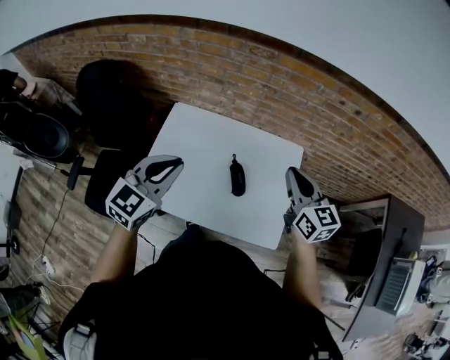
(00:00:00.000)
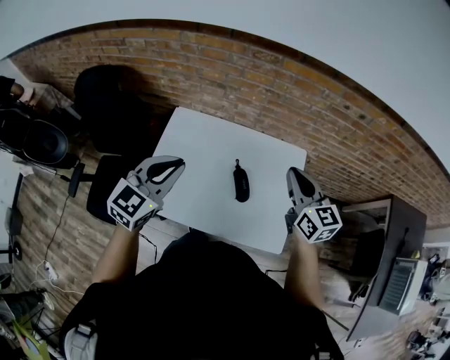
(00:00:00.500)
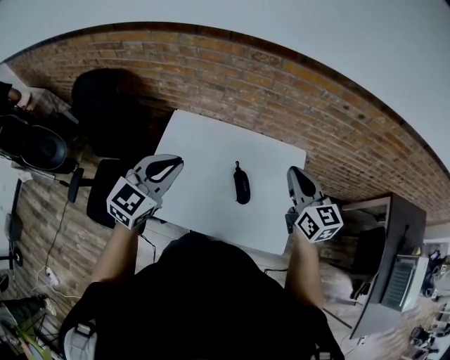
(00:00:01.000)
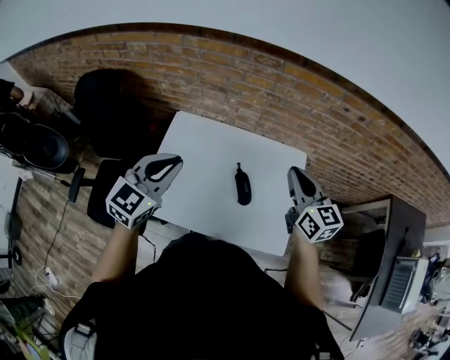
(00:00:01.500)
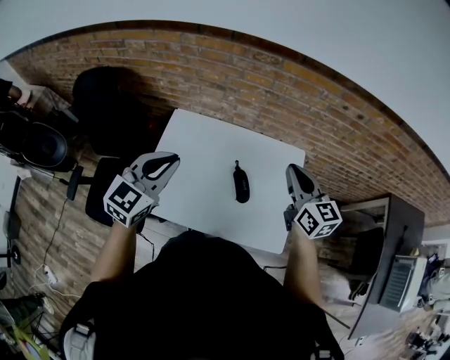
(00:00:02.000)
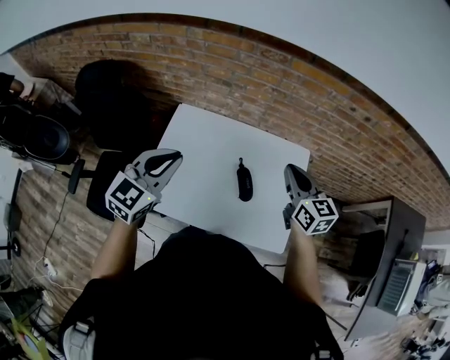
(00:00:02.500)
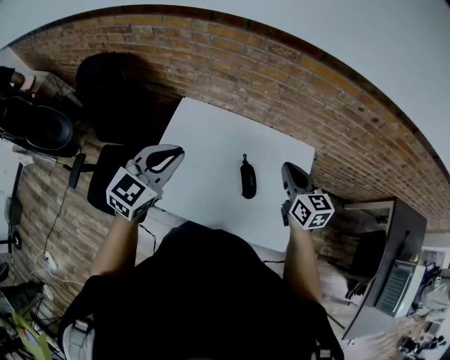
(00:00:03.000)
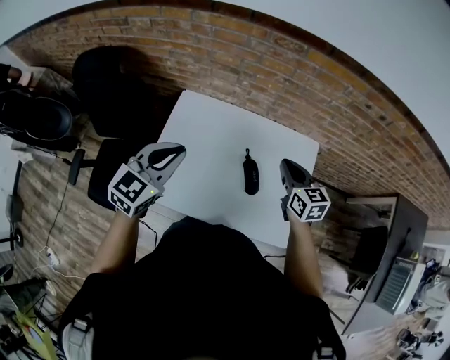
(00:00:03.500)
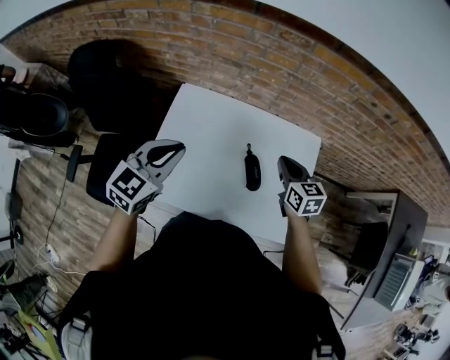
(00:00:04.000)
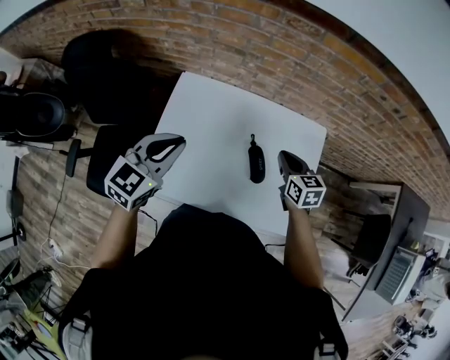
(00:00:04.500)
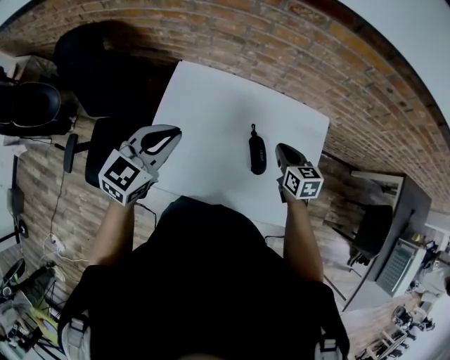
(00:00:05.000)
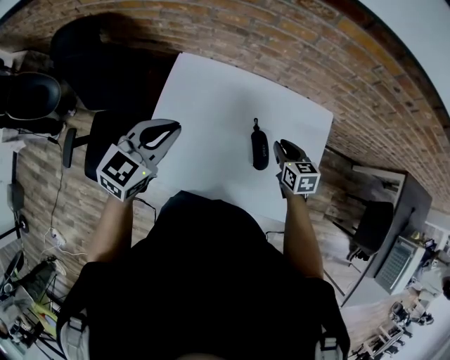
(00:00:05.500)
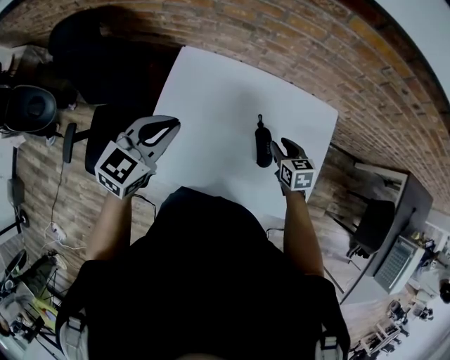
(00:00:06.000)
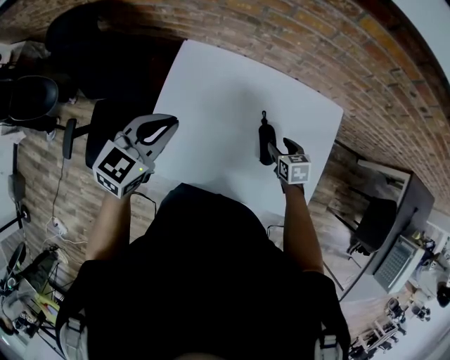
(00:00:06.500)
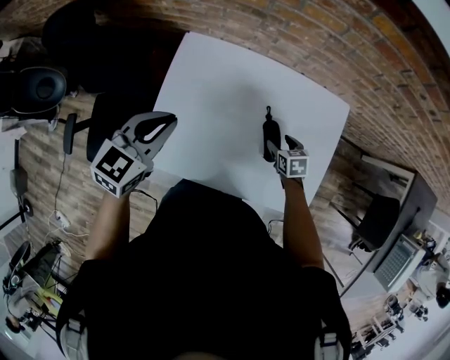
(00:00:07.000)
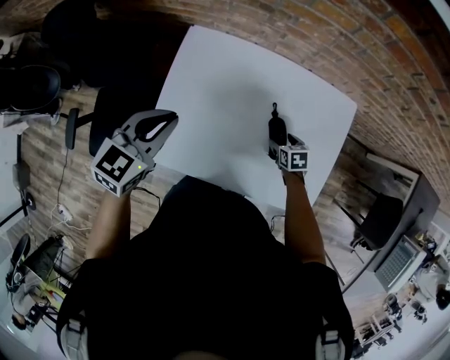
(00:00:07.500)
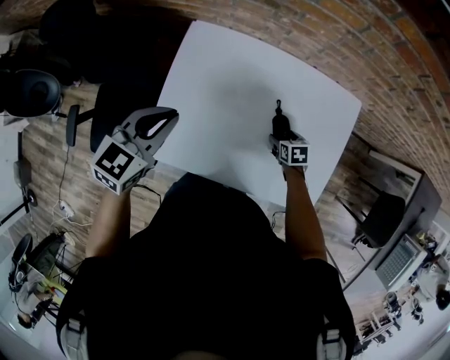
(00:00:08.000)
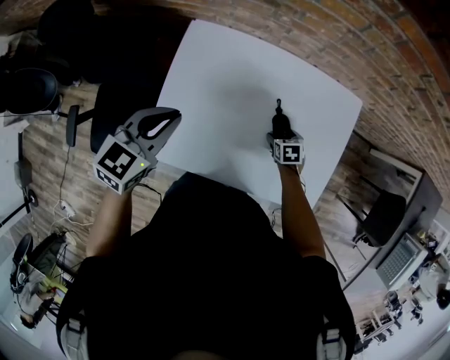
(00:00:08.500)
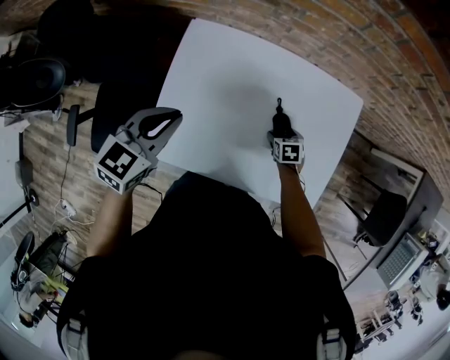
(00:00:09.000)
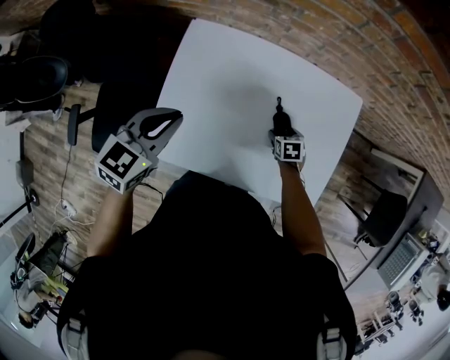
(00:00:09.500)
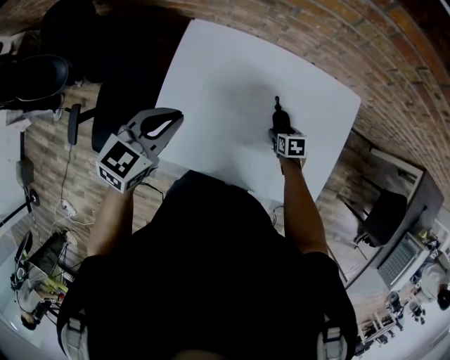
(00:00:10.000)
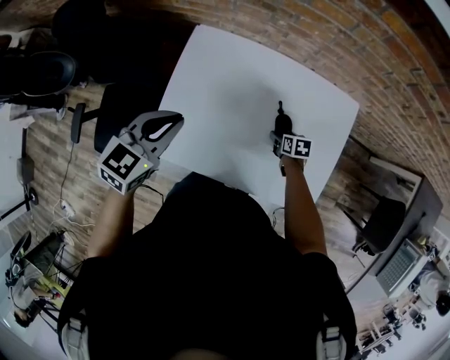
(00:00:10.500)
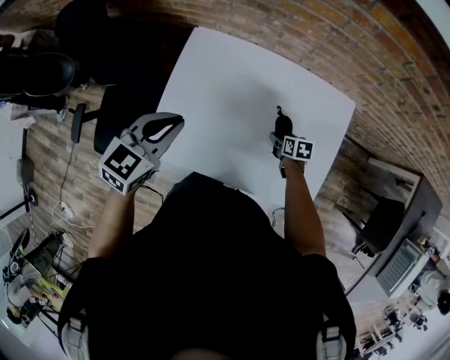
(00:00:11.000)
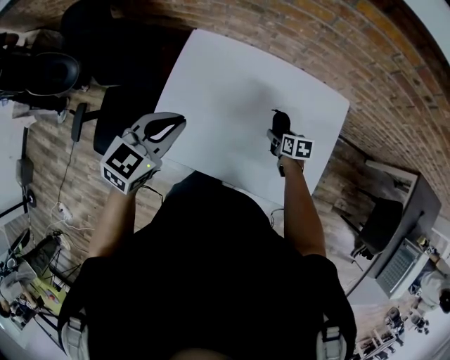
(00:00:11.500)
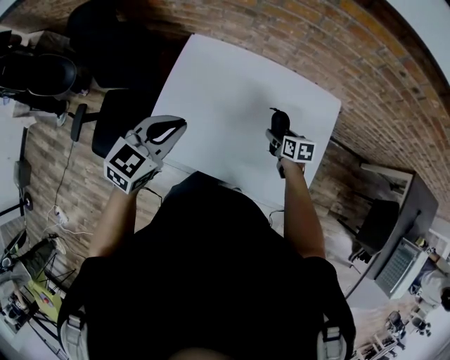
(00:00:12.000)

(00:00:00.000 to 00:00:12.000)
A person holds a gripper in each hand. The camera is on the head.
00:00:00.000 - 00:00:02.000: The left gripper moves approximately 5 cm.
00:00:02.000 - 00:00:04.000: The right gripper travels downward by approximately 15 cm; the left gripper travels downward by approximately 5 cm.
00:00:04.000 - 00:00:06.000: The right gripper moves downward, about 15 cm, and opens up, while the left gripper goes about 5 cm downward.
00:00:06.000 - 00:00:08.000: The right gripper heads downward, covering approximately 15 cm, swivels roughly 20 degrees, and opens; the left gripper is displaced downward by about 5 cm.
00:00:08.000 - 00:00:10.000: The grippers stay close to where they were, moving slightly.
00:00:10.000 - 00:00:12.000: The left gripper heads backward and upward, covering approximately 10 cm. The right gripper goes roughly 10 cm upward.

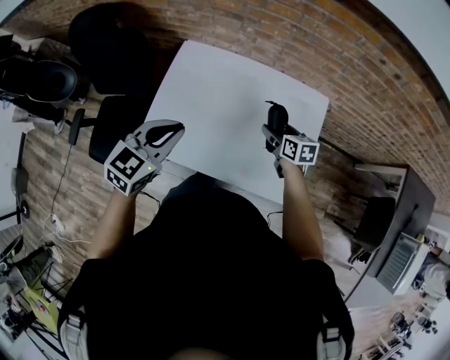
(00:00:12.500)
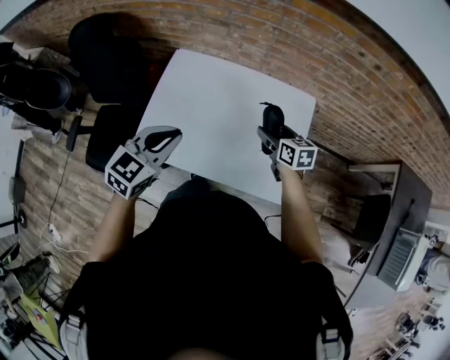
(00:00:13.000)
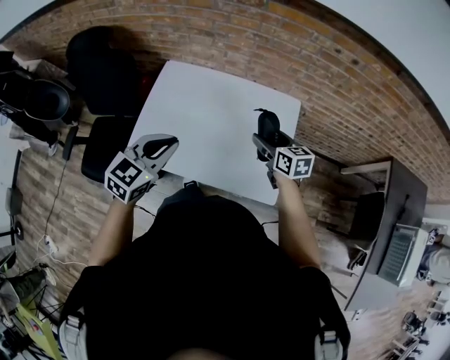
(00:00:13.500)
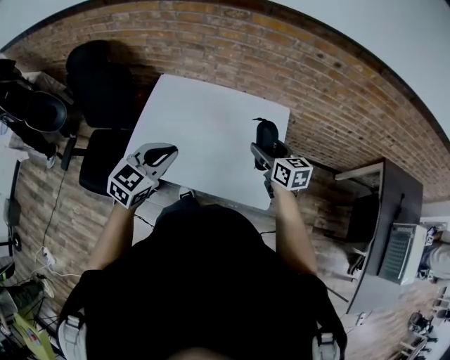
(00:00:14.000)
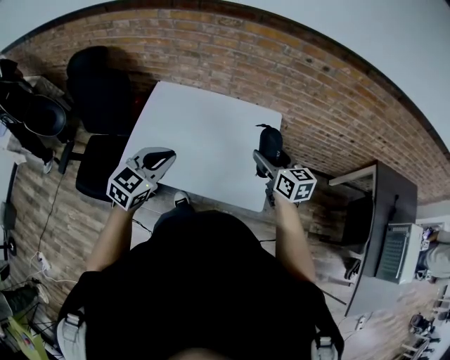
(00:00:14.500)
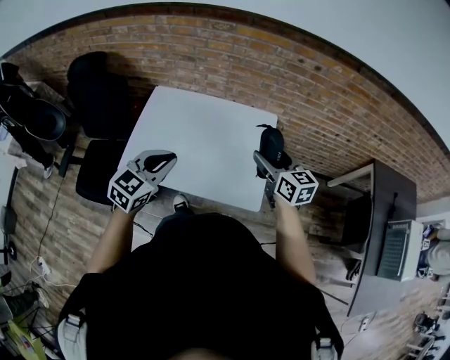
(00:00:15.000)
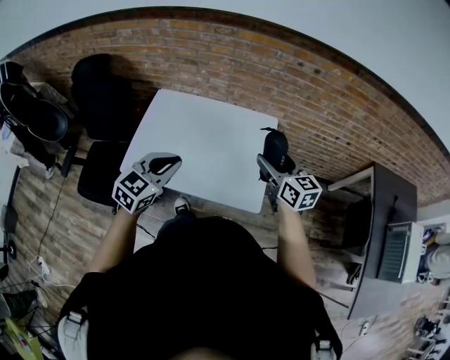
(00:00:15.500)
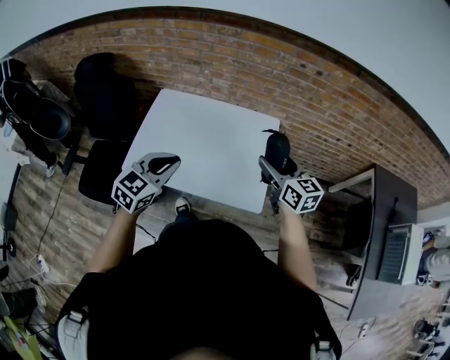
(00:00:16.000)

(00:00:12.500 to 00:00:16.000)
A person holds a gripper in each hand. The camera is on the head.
00:00:12.500 - 00:00:14.500: The left gripper travels backward and to the right by approximately 15 cm; the right gripper heads upward, backward and to the right, covering approximately 25 cm, and turns by about 20 degrees.
00:00:14.500 - 00:00:16.000: The right gripper shifts some 5 cm upward and backward.

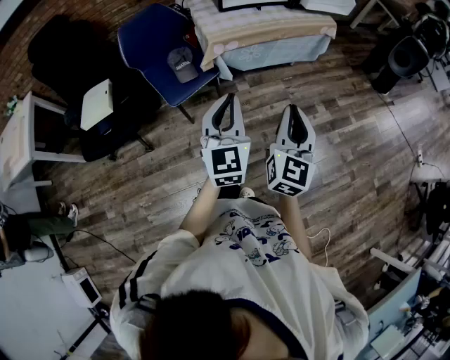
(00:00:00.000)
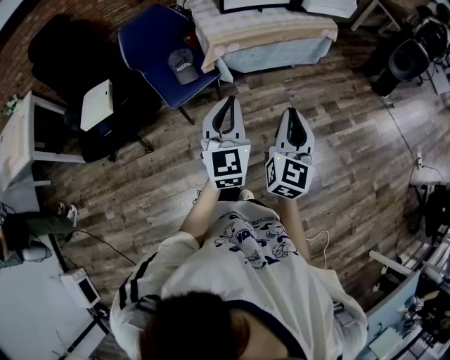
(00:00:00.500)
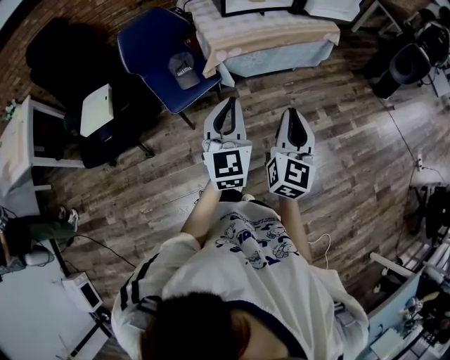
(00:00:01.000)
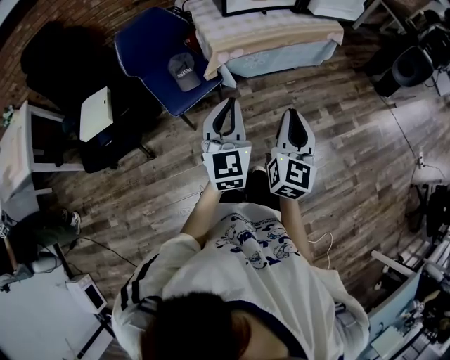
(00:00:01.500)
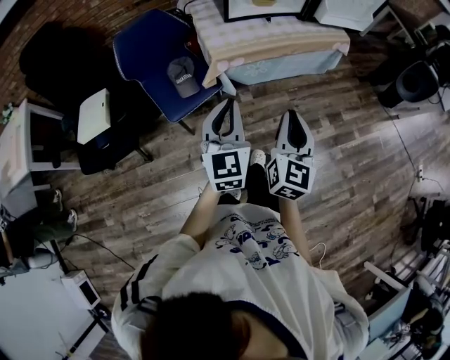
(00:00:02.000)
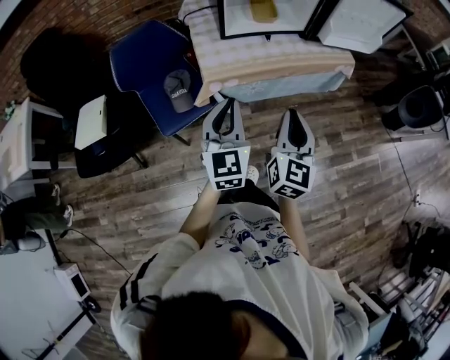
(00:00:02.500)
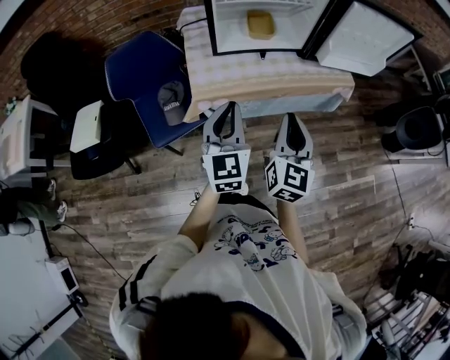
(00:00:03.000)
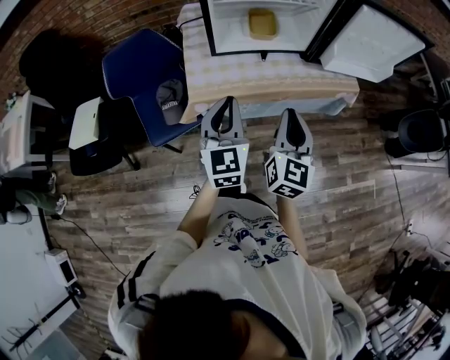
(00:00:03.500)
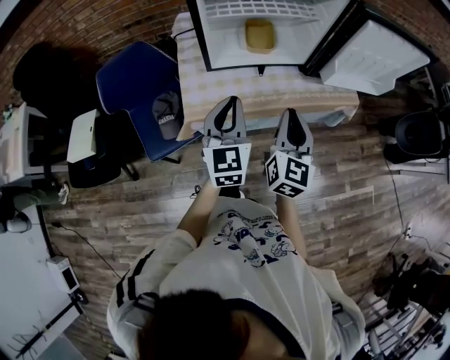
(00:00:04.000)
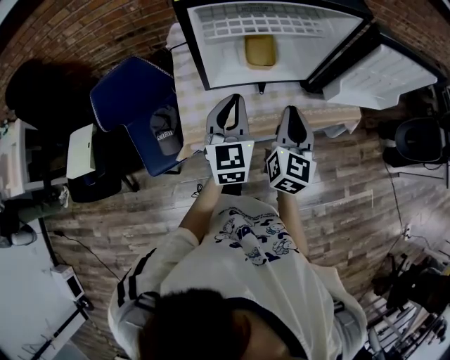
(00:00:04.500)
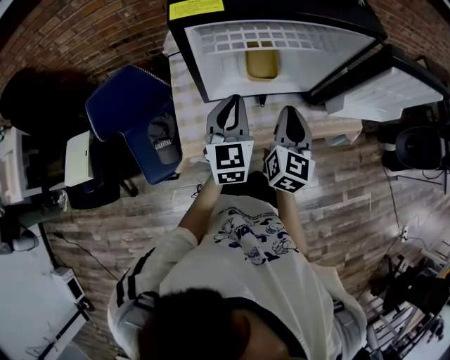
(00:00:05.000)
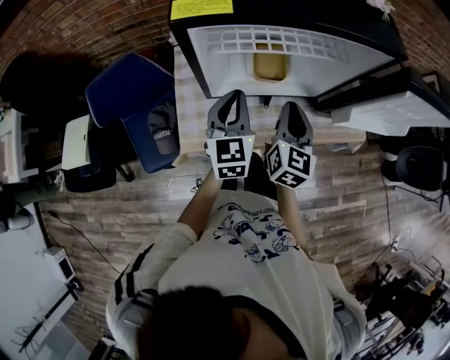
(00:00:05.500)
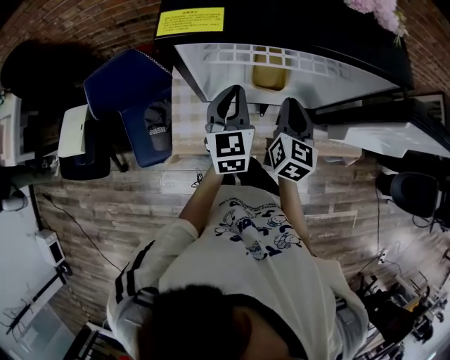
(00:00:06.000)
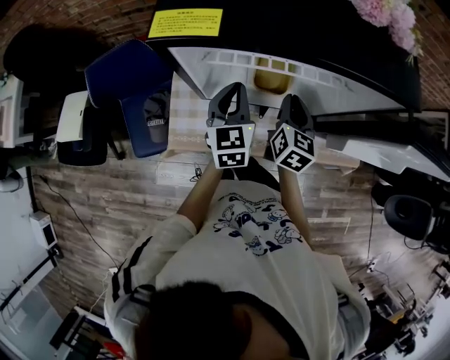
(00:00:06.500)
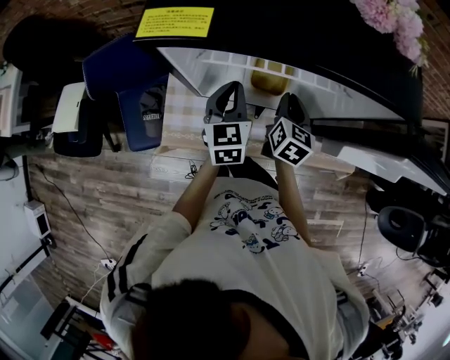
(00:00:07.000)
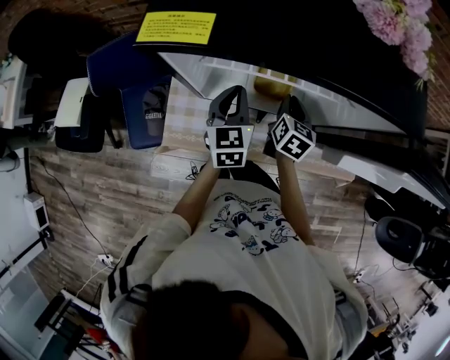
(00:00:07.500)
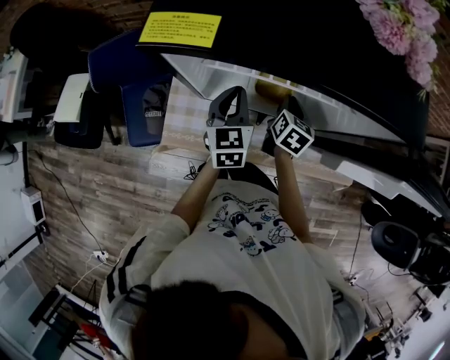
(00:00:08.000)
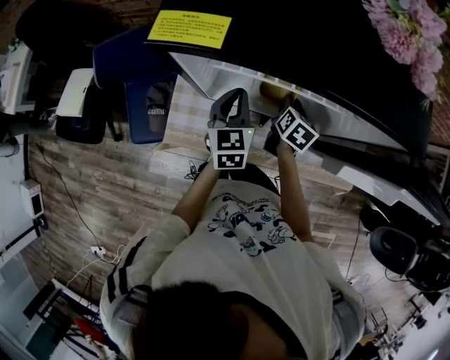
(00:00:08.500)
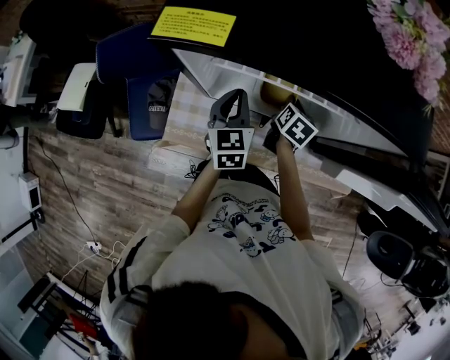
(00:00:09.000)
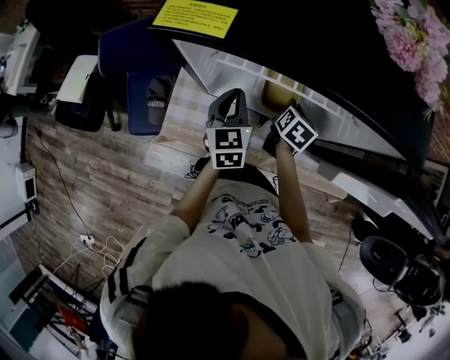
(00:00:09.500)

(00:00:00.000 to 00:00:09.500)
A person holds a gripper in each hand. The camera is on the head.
00:00:00.000 - 00:00:02.000: The two grippers go roughly 15 cm forward.
00:00:02.000 - 00:00:04.000: The two grippers go roughly 35 cm forward.
00:00:04.000 - 00:00:05.500: Both grippers travel together forward, about 20 cm.
00:00:05.500 - 00:00:07.500: The right gripper is displaced forward and downward by some 20 cm, and changes its angle by roughly 20 degrees. The left gripper travels forward and downward by approximately 10 cm.
00:00:07.500 - 00:00:09.500: The right gripper opens and closes again.

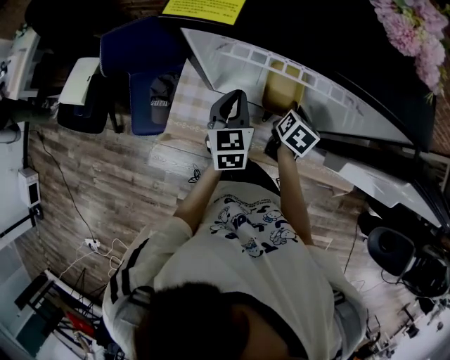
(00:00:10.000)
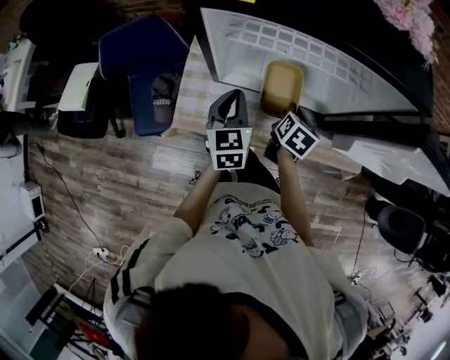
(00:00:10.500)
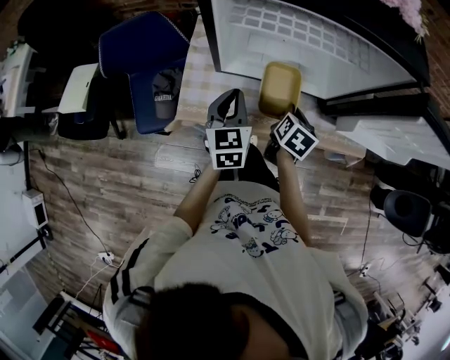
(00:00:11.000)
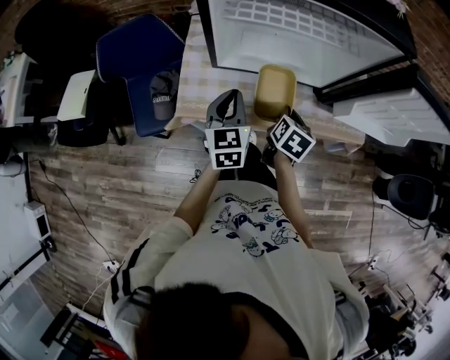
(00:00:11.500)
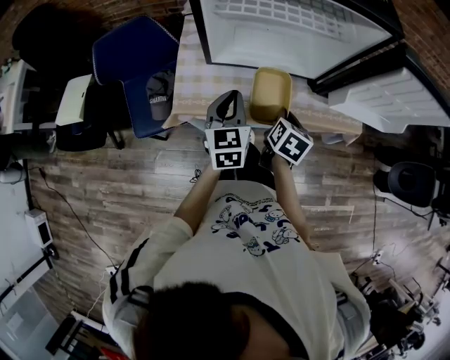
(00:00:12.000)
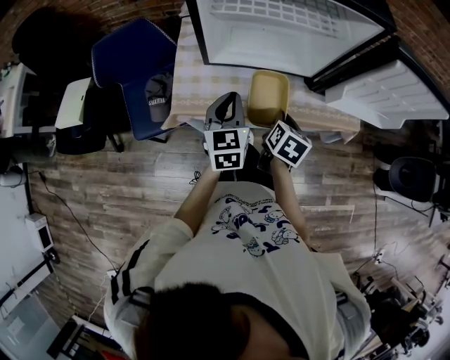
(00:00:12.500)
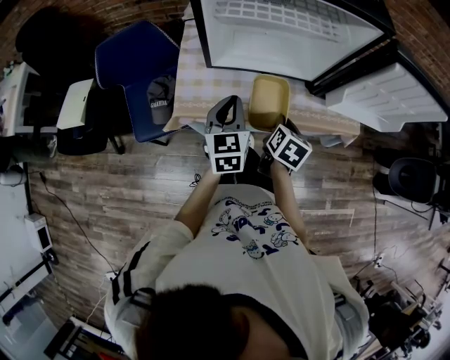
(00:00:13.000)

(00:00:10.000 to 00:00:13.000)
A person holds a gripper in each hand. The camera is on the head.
00:00:10.000 - 00:00:11.500: Both grippers move backward, some 15 cm.
00:00:11.500 - 00:00:13.000: The right gripper is displaced backward by about 5 cm.
